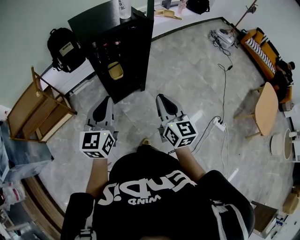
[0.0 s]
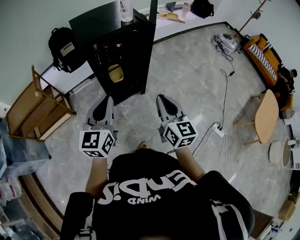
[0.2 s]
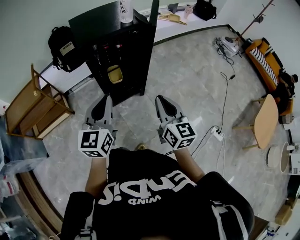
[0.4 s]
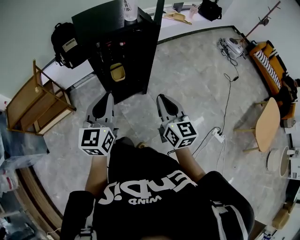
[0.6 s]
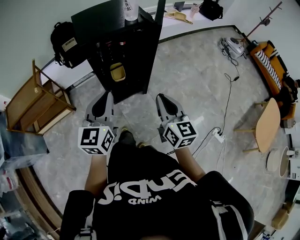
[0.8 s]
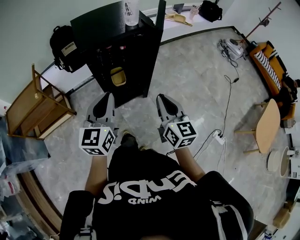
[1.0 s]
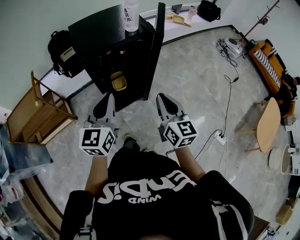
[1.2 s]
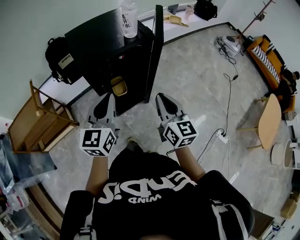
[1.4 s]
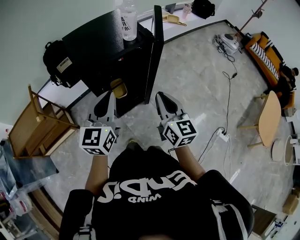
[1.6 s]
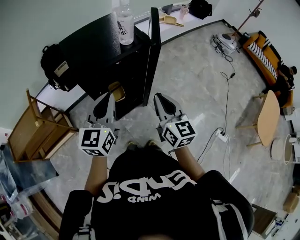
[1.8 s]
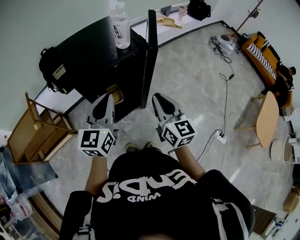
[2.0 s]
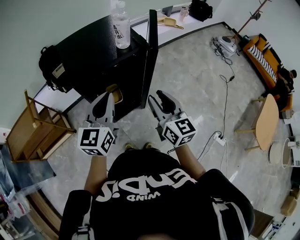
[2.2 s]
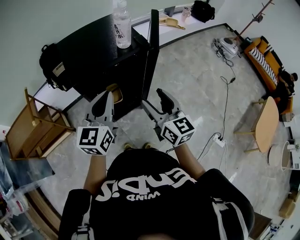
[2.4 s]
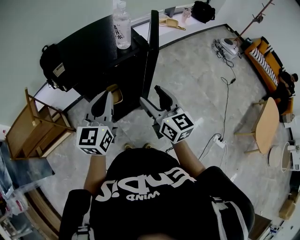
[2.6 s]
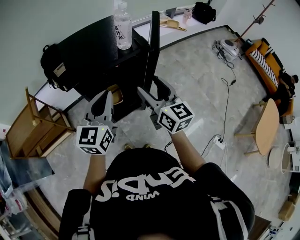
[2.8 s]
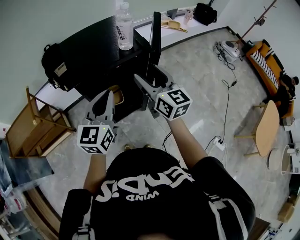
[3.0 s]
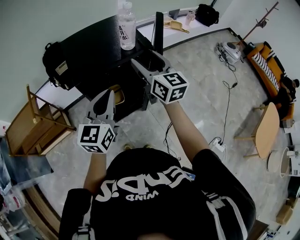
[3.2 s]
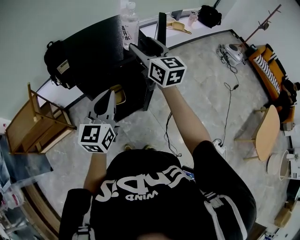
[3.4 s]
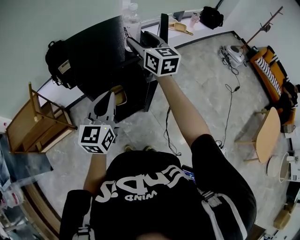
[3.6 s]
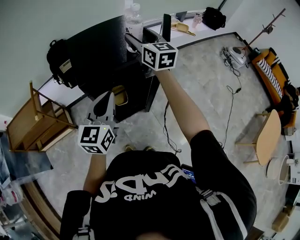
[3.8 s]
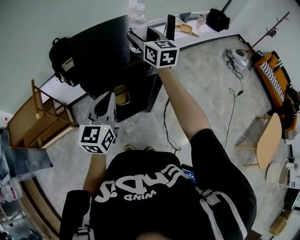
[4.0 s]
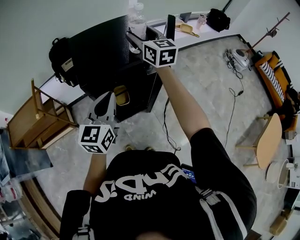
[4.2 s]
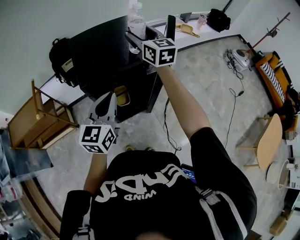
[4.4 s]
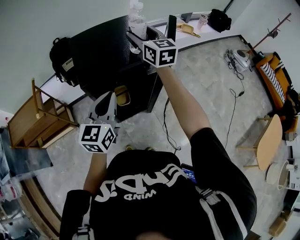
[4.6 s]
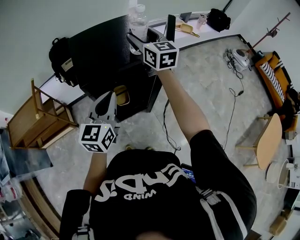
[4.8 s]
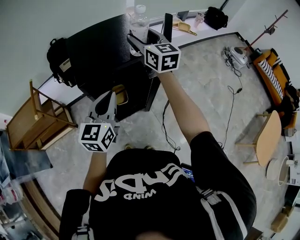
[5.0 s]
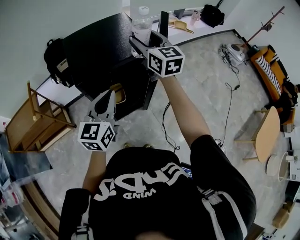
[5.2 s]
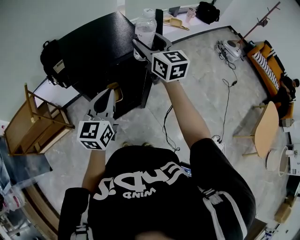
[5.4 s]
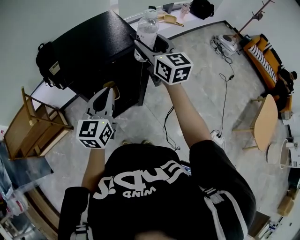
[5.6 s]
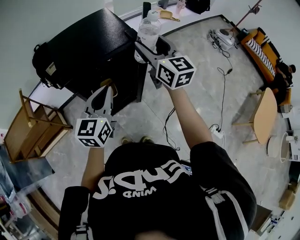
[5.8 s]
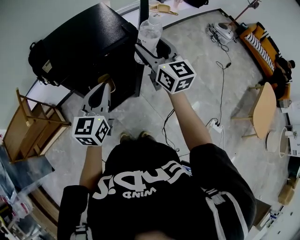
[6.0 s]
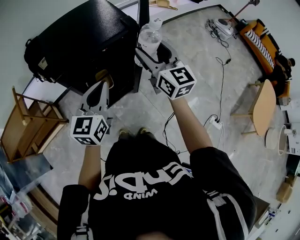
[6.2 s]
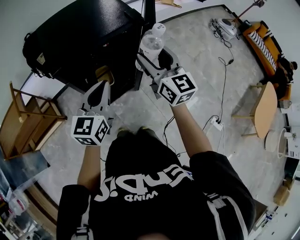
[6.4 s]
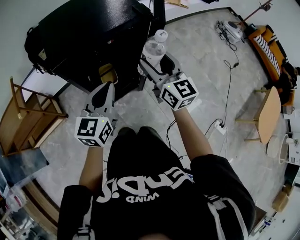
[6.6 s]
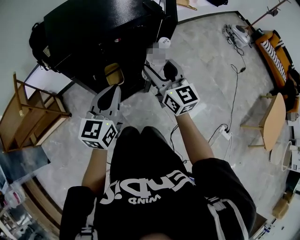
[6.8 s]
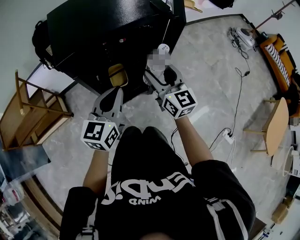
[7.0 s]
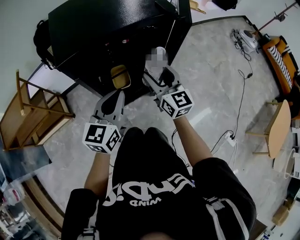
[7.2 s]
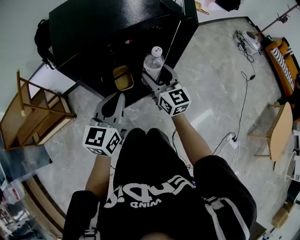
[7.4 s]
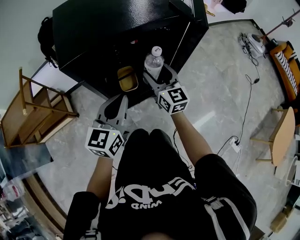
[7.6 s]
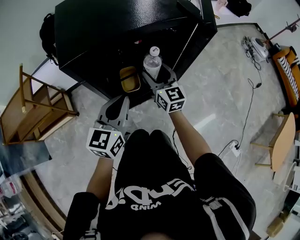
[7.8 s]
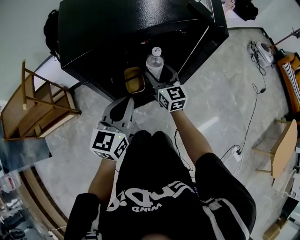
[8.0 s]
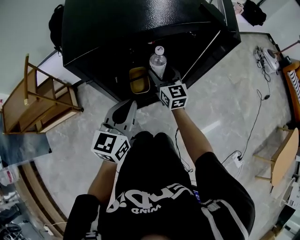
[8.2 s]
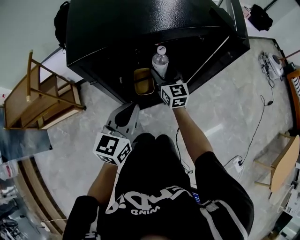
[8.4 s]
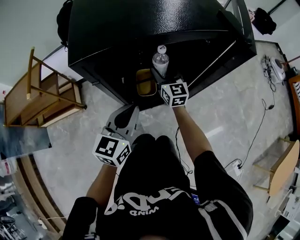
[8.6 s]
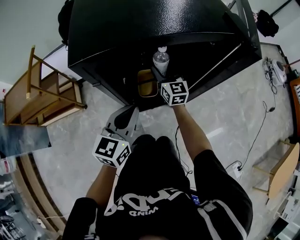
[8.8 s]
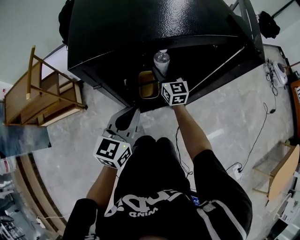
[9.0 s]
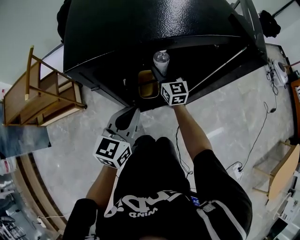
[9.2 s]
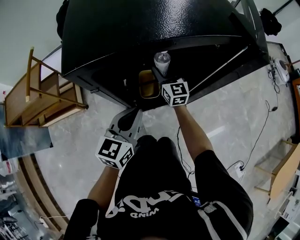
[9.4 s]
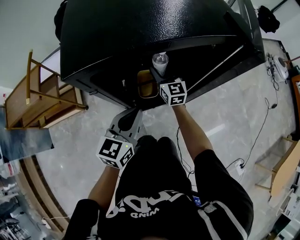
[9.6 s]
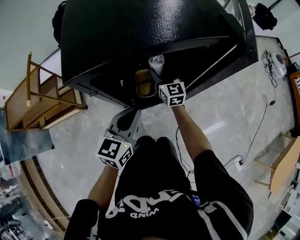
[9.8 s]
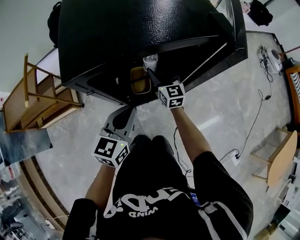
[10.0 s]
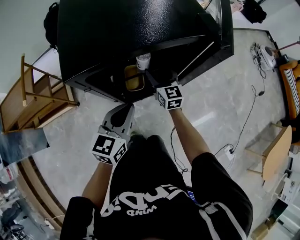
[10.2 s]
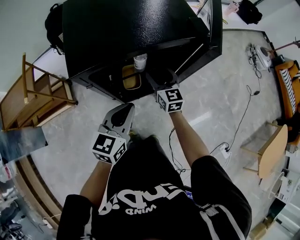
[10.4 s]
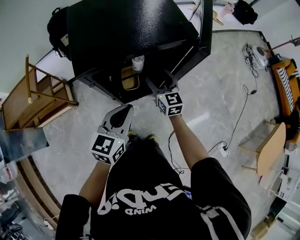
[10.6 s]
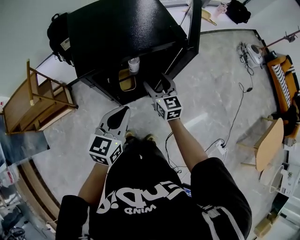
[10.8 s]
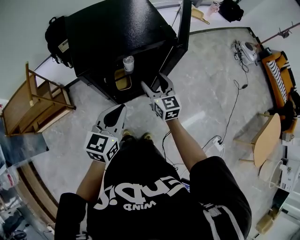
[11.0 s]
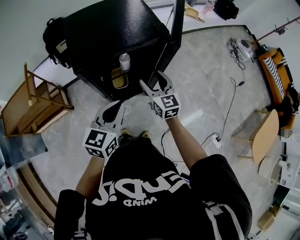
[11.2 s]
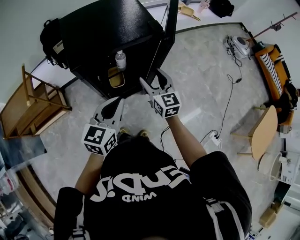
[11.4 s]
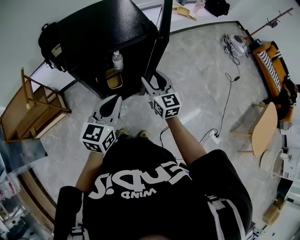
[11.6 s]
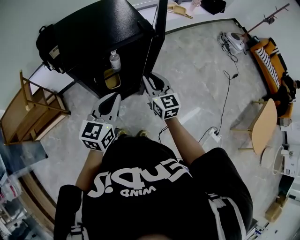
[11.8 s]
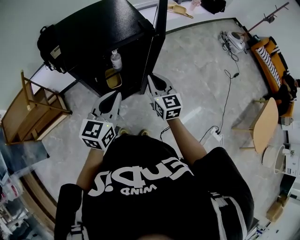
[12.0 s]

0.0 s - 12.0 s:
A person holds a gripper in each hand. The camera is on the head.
0.0 s - 1.6 s: The grippers both shift forward by roughly 20 cm.
1.6 s - 3.0 s: The right gripper goes roughly 15 cm forward and upward, and opens up; the left gripper ends up some 5 cm from where it was.
3.0 s - 4.4 s: The right gripper moves forward, roughly 20 cm.
4.4 s - 6.0 s: The right gripper moves backward and to the right, about 20 cm. Meanwhile the left gripper moves roughly 5 cm.
6.0 s - 7.6 s: The right gripper travels downward by about 30 cm; the left gripper shifts approximately 20 cm downward.
7.6 s - 9.0 s: The right gripper heads forward, downward and to the left, covering about 20 cm; the left gripper heads downward, covering some 10 cm.
9.0 s - 10.4 s: The right gripper heads upward, backward and to the right, covering about 15 cm, while the left gripper shifts roughly 10 cm upward.
10.4 s - 12.0 s: The left gripper goes roughly 15 cm upward and backward; the right gripper travels upward, backward and to the right by approximately 25 cm, and closes up.

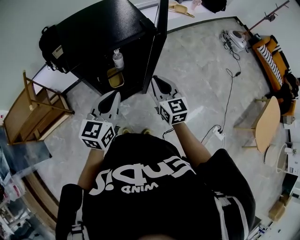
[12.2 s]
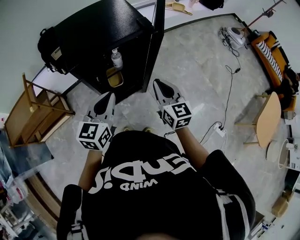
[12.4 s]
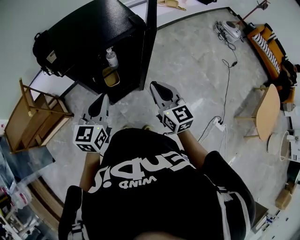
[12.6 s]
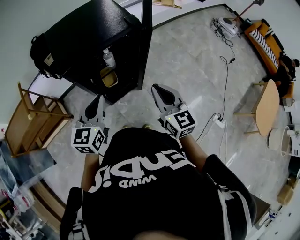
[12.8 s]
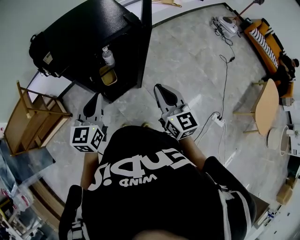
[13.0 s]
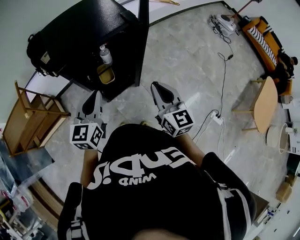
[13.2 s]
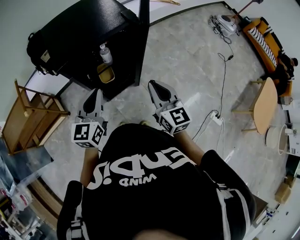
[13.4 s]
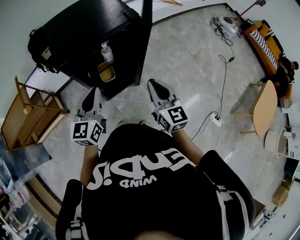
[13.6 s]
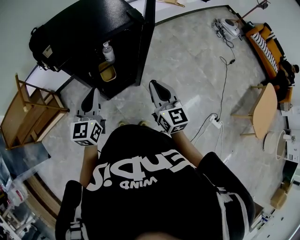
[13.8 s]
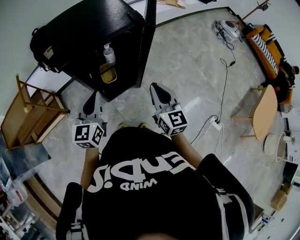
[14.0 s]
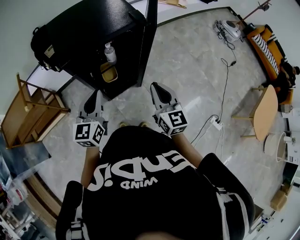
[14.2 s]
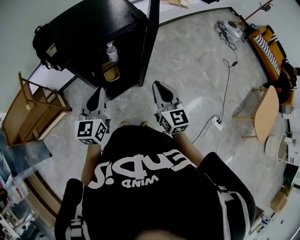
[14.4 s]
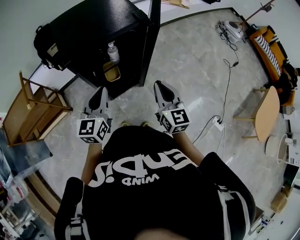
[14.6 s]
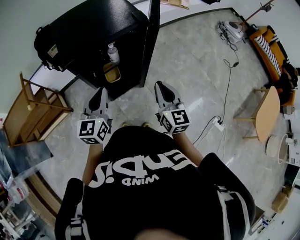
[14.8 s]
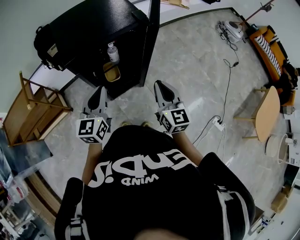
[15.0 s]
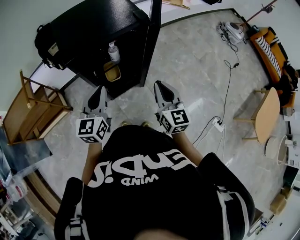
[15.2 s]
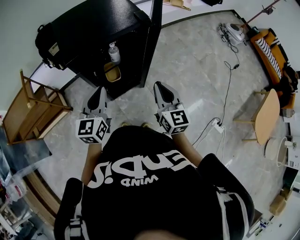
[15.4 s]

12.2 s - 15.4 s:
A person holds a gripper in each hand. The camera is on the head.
12.2 s - 13.8 s: The left gripper is displaced to the left by about 5 cm, while the right gripper shifts approximately 5 cm backward.
13.8 s - 15.4 s: Neither gripper changes place.

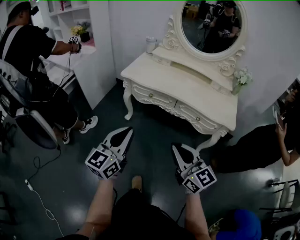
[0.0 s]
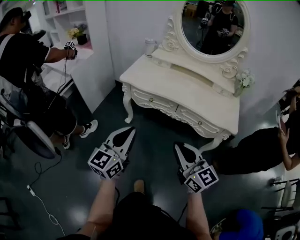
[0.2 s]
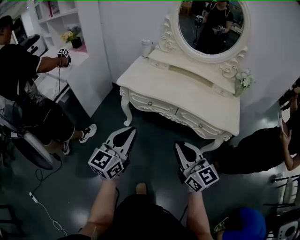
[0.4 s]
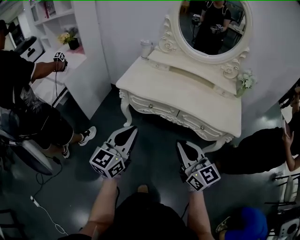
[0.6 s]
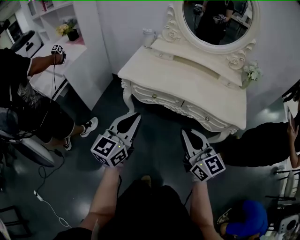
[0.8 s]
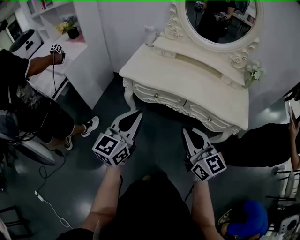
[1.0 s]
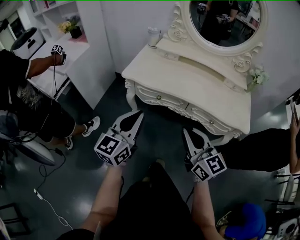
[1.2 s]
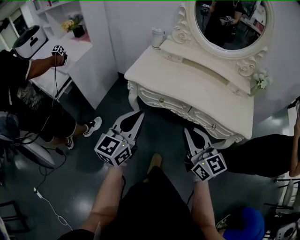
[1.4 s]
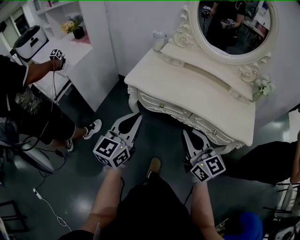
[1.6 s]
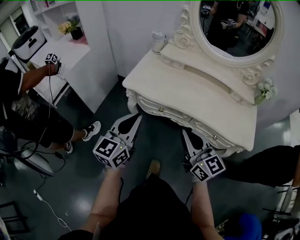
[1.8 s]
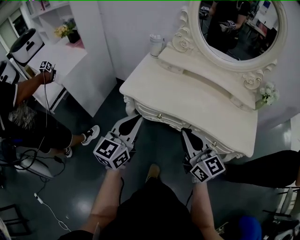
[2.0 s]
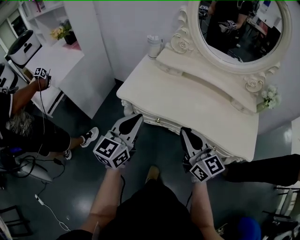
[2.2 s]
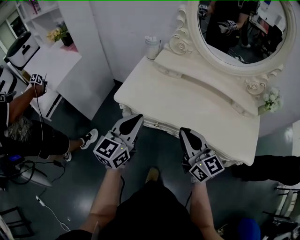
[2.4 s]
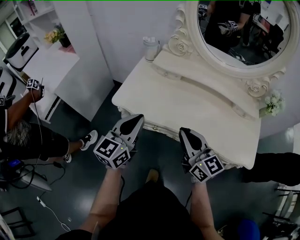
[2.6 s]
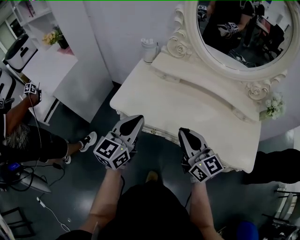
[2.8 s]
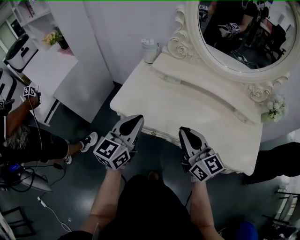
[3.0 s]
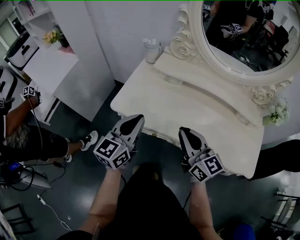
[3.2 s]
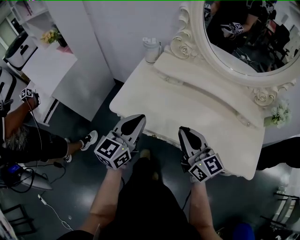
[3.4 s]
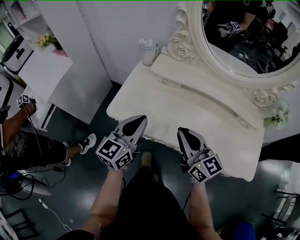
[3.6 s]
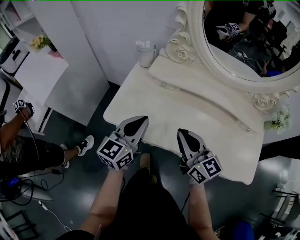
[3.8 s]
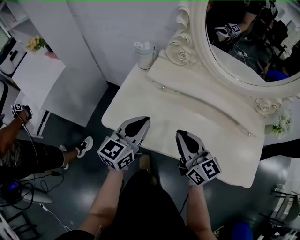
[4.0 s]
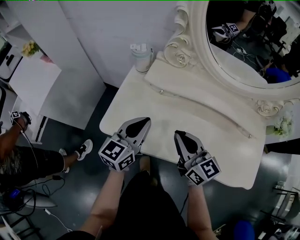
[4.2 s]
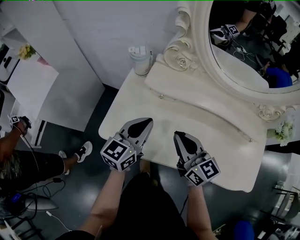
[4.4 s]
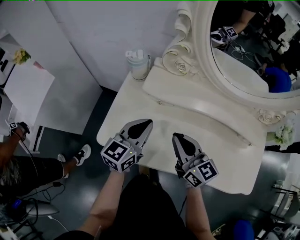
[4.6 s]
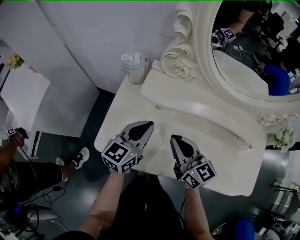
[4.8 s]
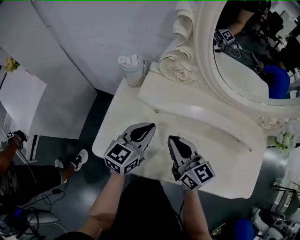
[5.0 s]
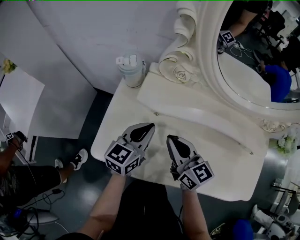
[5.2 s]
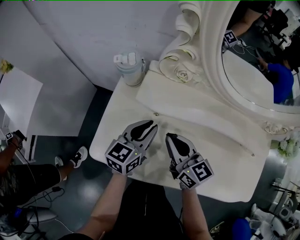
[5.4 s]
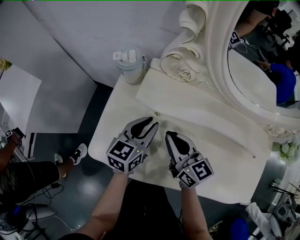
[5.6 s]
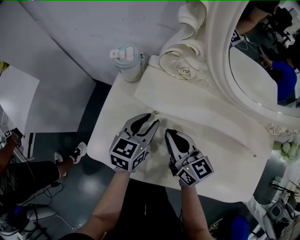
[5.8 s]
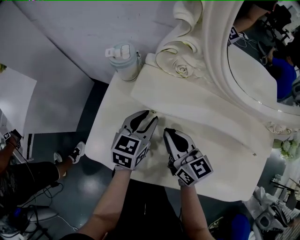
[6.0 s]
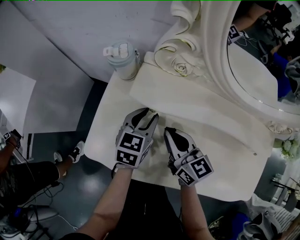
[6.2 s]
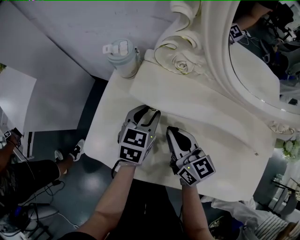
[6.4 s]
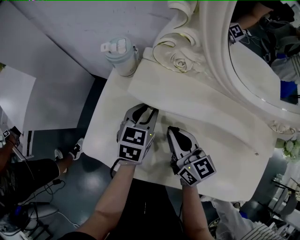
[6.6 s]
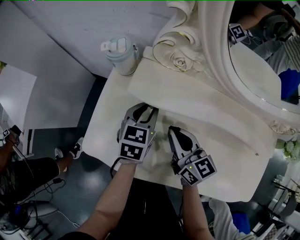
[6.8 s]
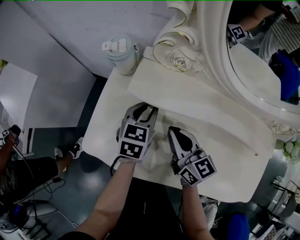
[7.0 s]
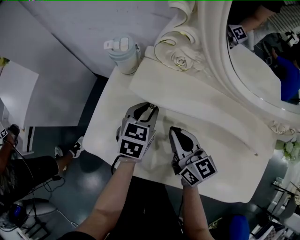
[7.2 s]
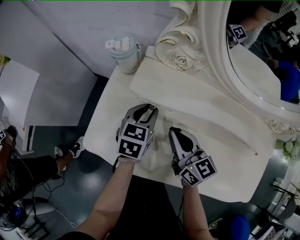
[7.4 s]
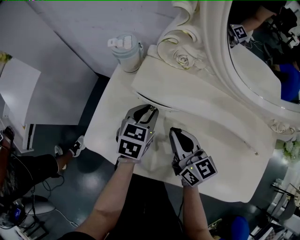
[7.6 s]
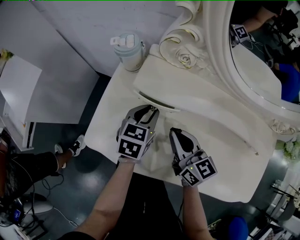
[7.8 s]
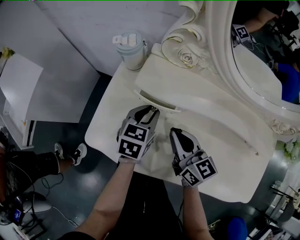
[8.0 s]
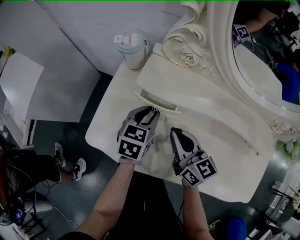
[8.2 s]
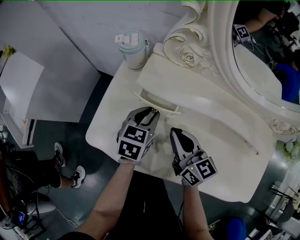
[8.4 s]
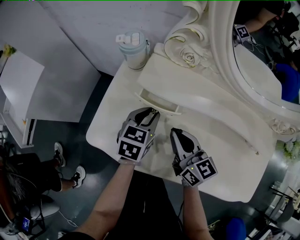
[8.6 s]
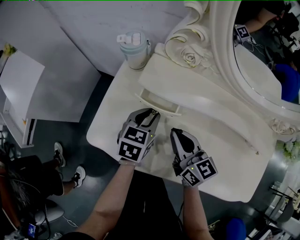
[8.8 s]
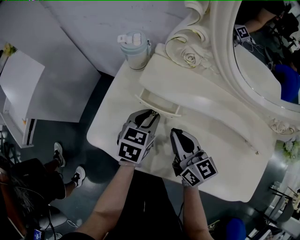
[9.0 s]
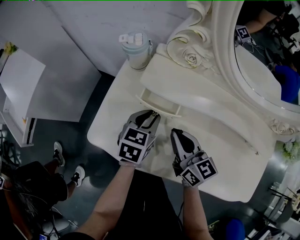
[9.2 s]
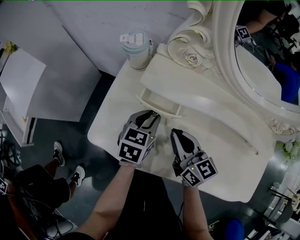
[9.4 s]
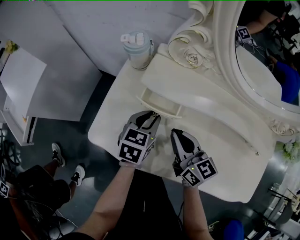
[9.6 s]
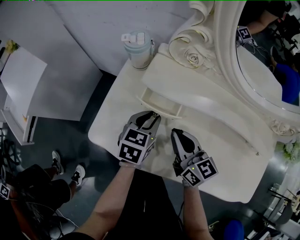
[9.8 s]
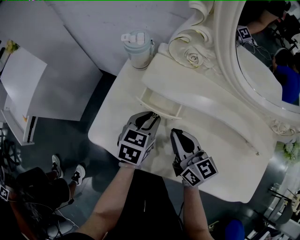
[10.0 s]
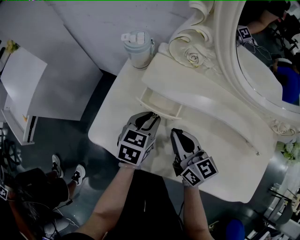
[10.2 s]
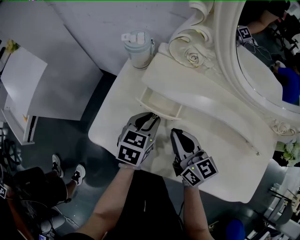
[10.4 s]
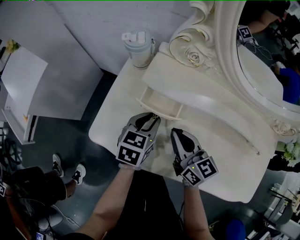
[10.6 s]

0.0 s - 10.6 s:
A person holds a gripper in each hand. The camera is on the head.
0.0 s - 1.6 s: The grippers both shift forward by about 25 cm.
1.6 s - 3.0 s: The two grippers go approximately 20 cm forward.
3.0 s - 4.6 s: Both grippers travel together forward, roughly 20 cm.
4.6 s - 6.0 s: The left gripper travels downward and forward by approximately 15 cm, and opens its fingers. The right gripper shifts some 10 cm forward and downward.
6.0 s - 10.6 s: There are only small adjustments of the grippers.
